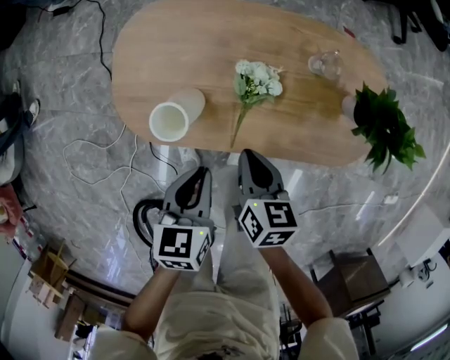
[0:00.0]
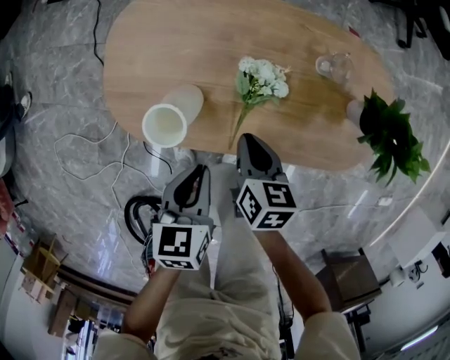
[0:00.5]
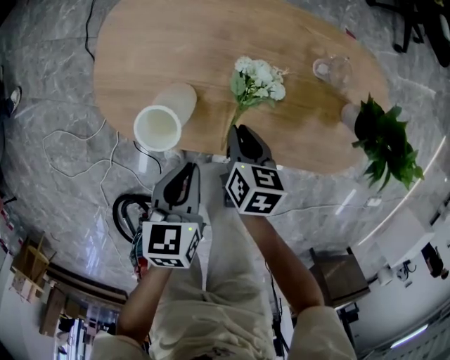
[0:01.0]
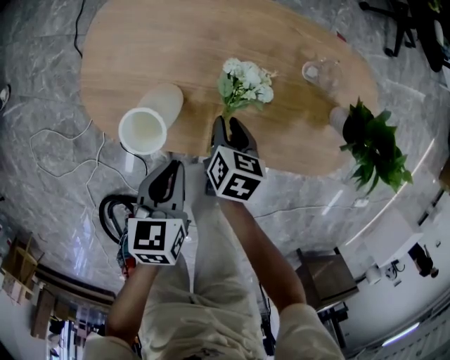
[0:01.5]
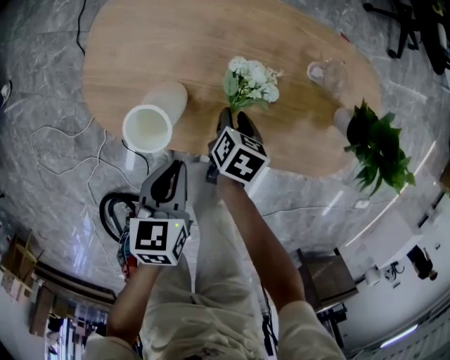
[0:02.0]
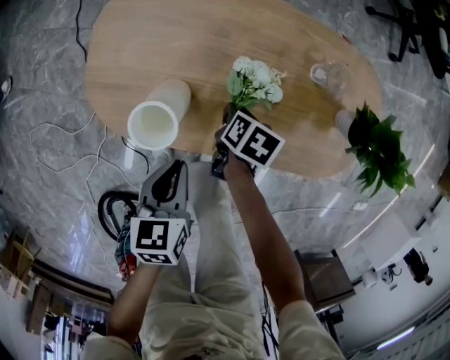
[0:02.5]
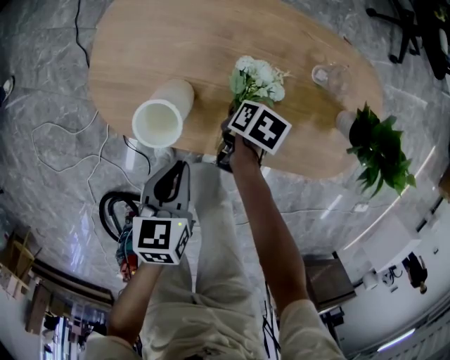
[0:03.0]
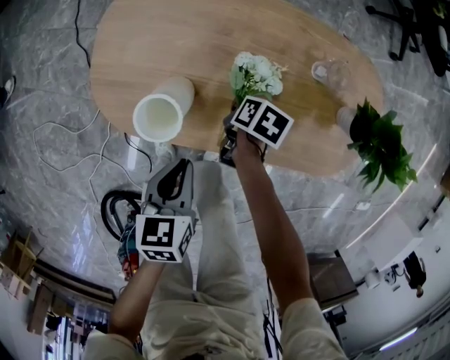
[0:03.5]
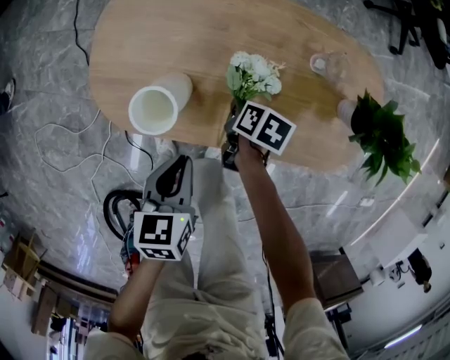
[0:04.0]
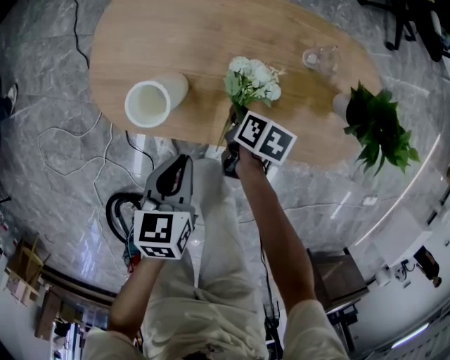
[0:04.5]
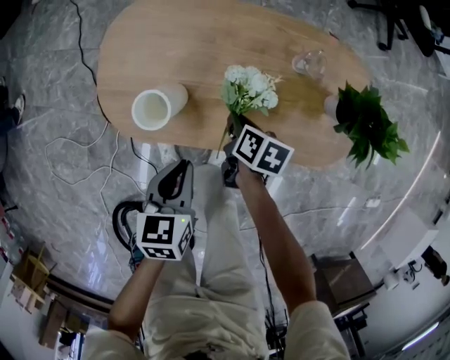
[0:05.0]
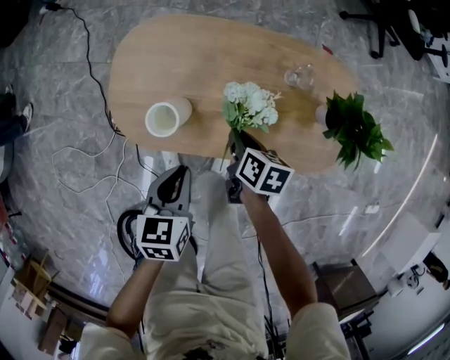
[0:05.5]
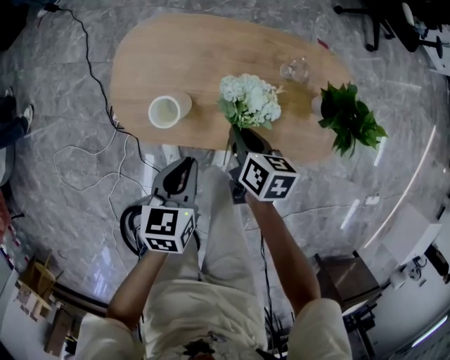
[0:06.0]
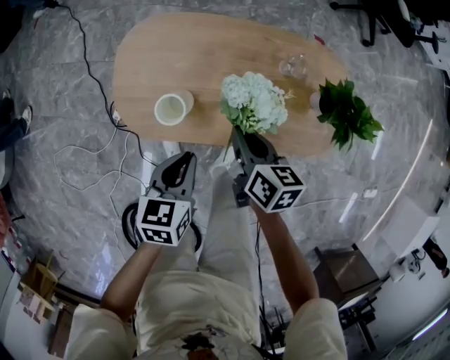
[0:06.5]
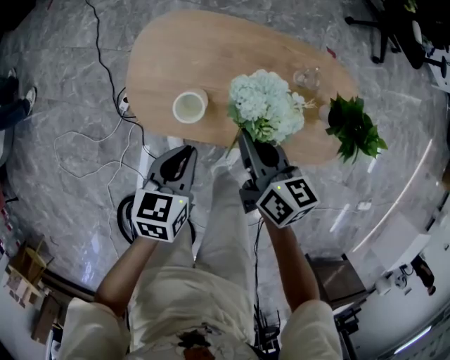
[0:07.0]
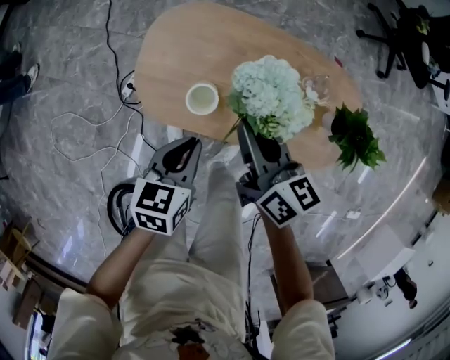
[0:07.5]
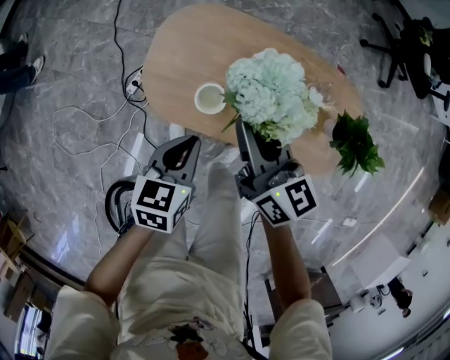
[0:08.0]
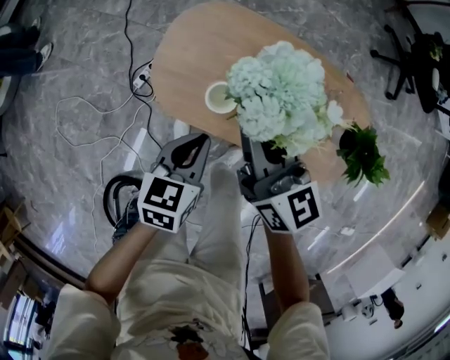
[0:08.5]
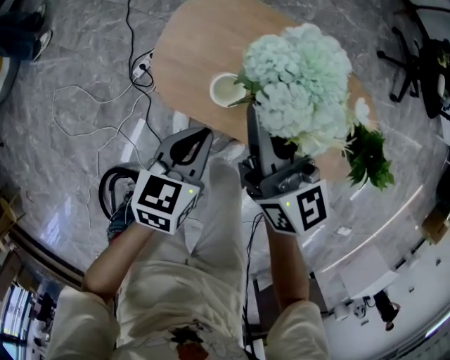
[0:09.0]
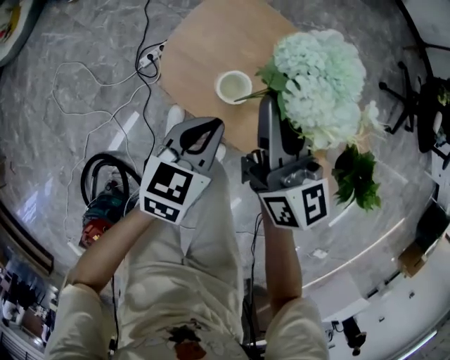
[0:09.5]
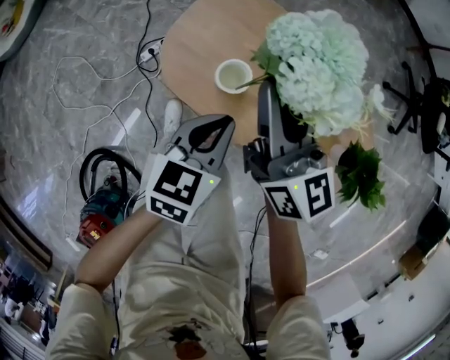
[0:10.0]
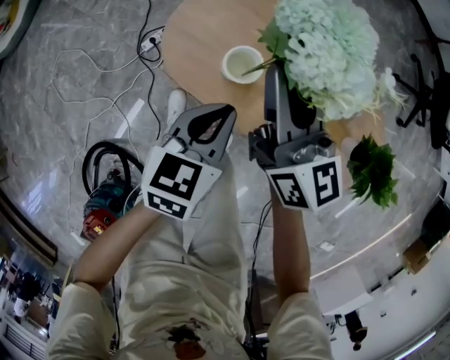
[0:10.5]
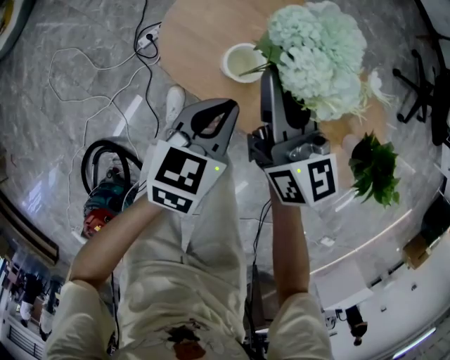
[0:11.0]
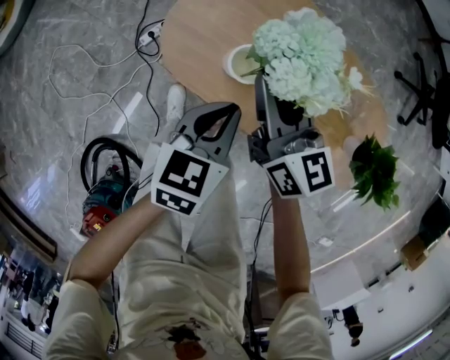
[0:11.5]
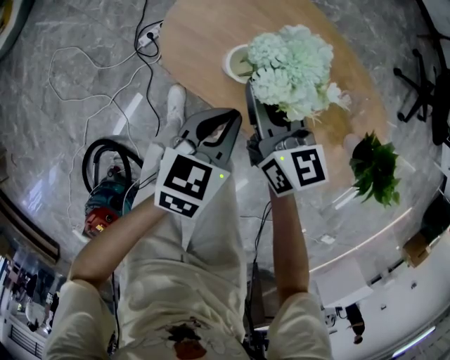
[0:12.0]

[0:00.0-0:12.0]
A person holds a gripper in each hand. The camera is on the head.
0:00.0 to 0:02.0: The right gripper moves downward, approximately 15 cm, turns by about 20 degrees, and opens up. The left gripper moves downward, about 10 cm.
0:02.0 to 0:04.0: The right gripper closes up.
0:04.0 to 0:06.0: The right gripper goes about 20 cm upward, and swivels about 20 degrees; the left gripper goes some 10 cm upward.
0:06.0 to 0:08.0: The left gripper goes some 10 cm to the left; the right gripper moves upward and to the left, some 20 cm, and angles its fingers upward, by approximately 30 degrees.
0:08.0 to 0:10.0: There are only small adjustments of the grippers.
0:10.0 to 0:12.0: The right gripper heads downward, covering some 15 cm. Meanwhile the left gripper travels downward by roughly 5 cm.

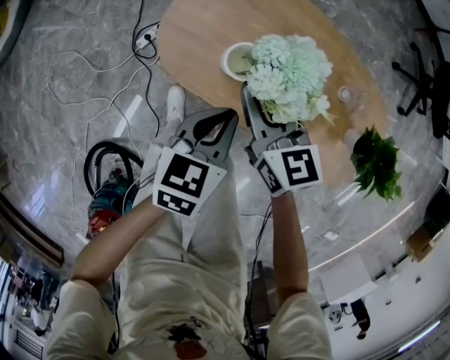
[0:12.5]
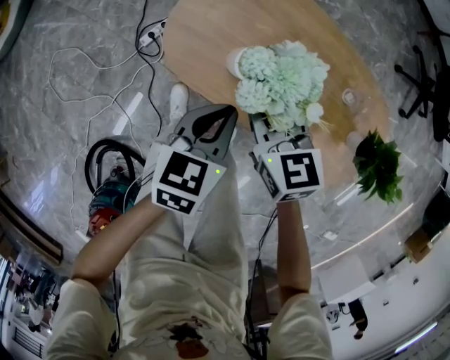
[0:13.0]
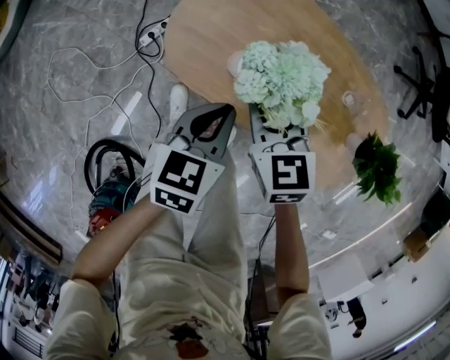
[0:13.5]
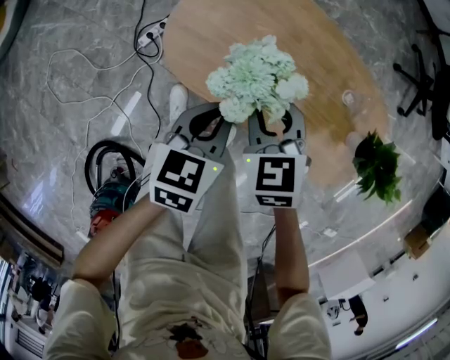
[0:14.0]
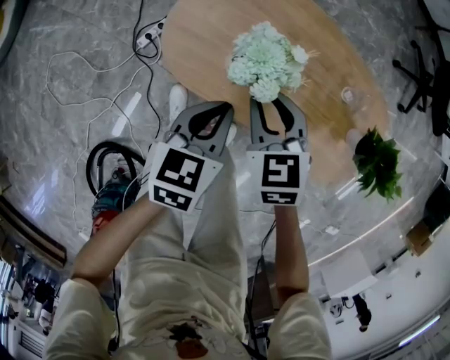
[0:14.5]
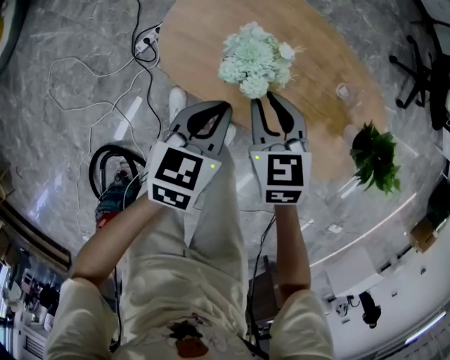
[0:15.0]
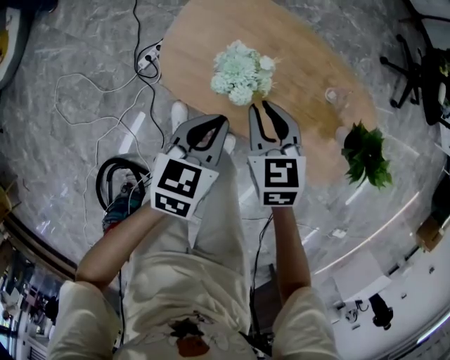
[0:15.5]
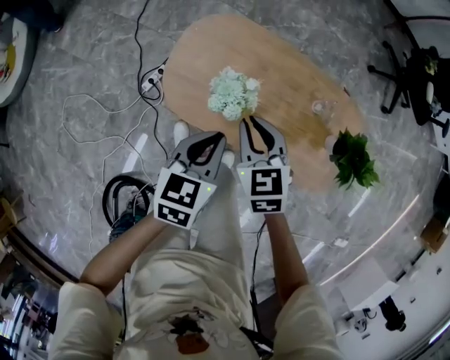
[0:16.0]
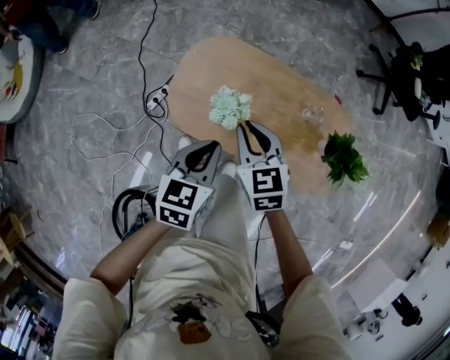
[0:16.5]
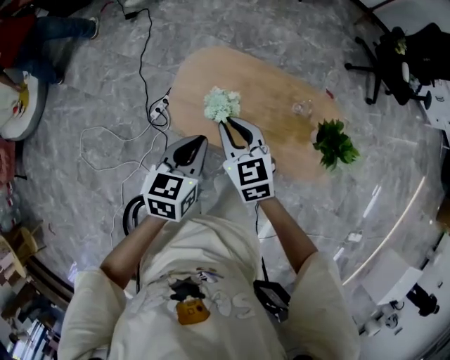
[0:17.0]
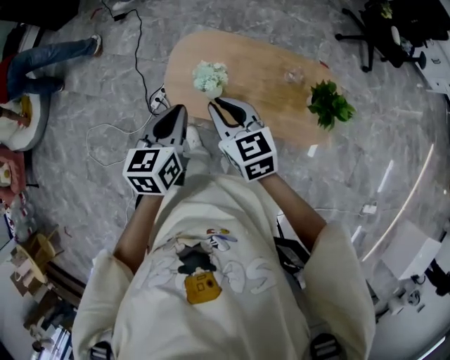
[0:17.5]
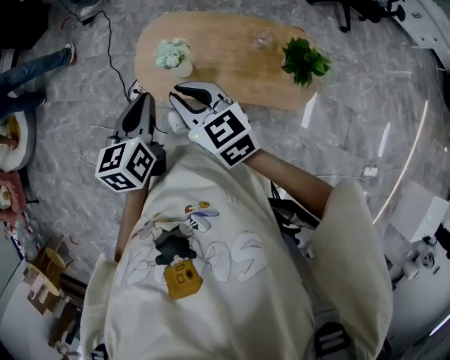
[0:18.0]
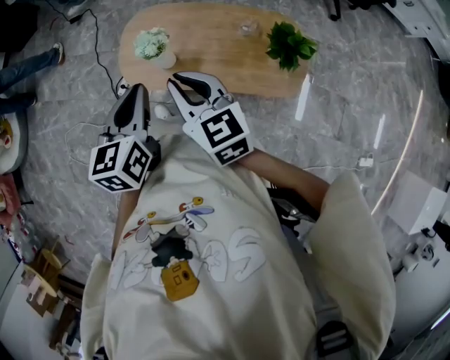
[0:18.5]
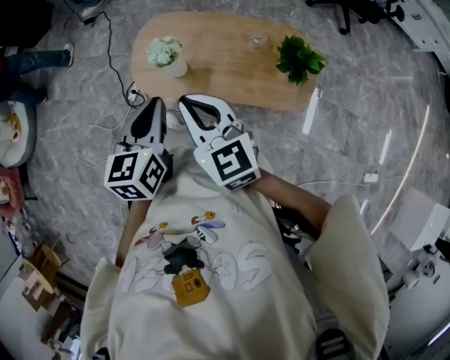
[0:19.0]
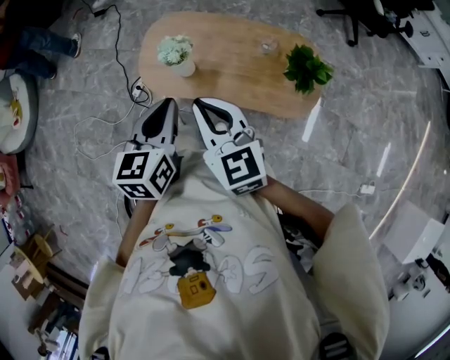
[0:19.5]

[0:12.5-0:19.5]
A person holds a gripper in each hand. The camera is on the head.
0:12.5 to 0:14.5: The right gripper swivels roughly 30 degrees.
0:14.5 to 0:16.0: Both grippers travel together upward, some 10 cm.
0:16.0 to 0:17.5: Both grippers move upward, about 20 cm.
0:17.5 to 0:19.5: Both grippers travel together backward and to the right, approximately 15 cm.

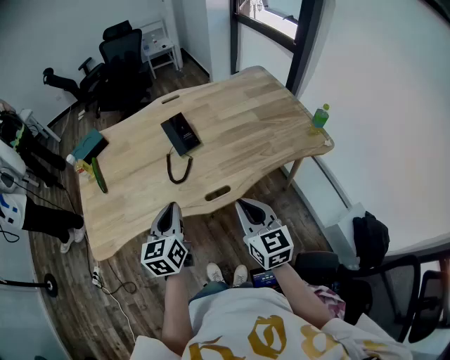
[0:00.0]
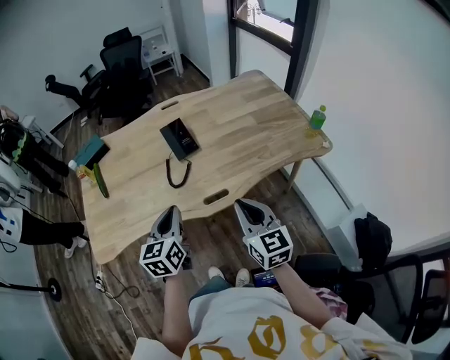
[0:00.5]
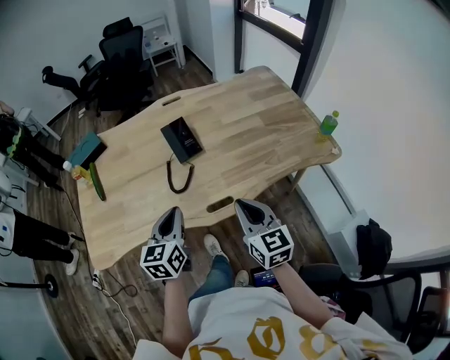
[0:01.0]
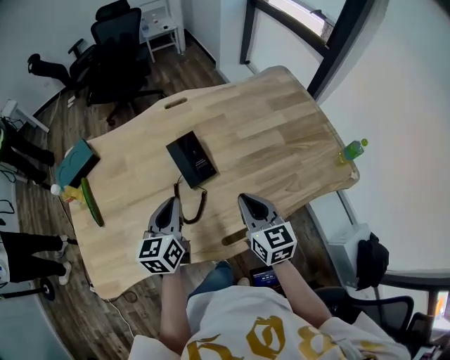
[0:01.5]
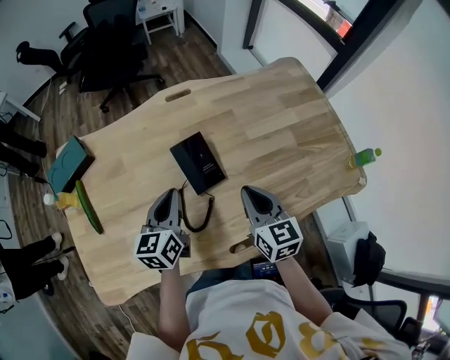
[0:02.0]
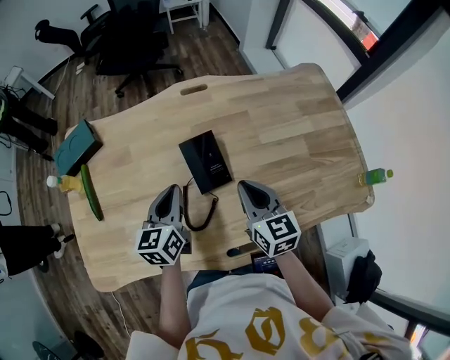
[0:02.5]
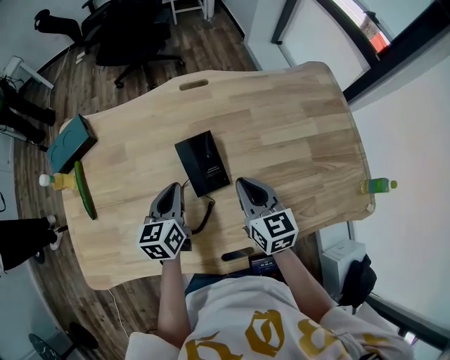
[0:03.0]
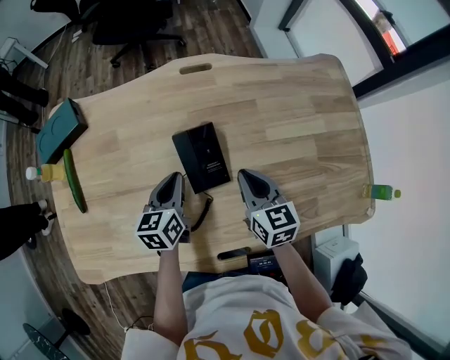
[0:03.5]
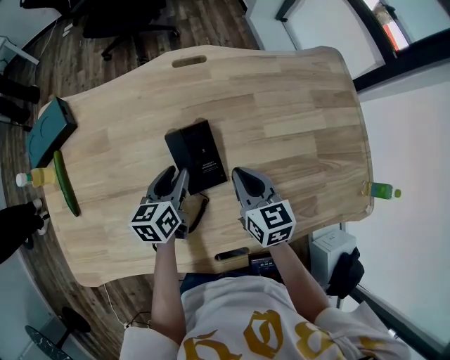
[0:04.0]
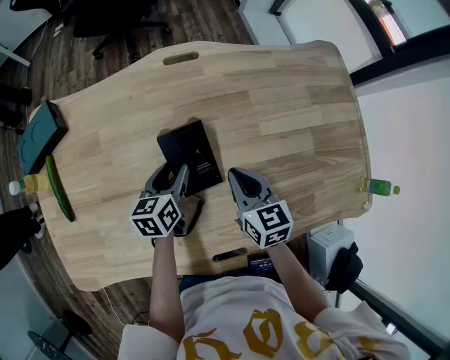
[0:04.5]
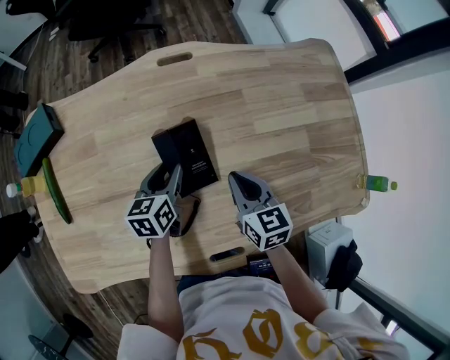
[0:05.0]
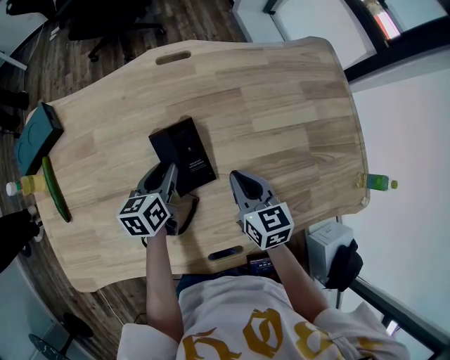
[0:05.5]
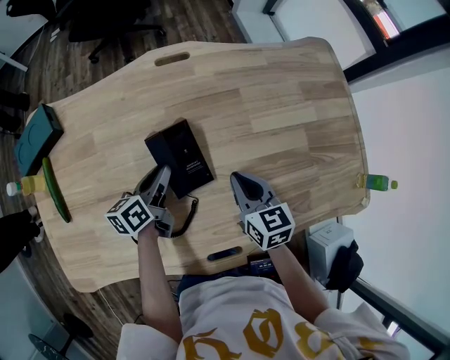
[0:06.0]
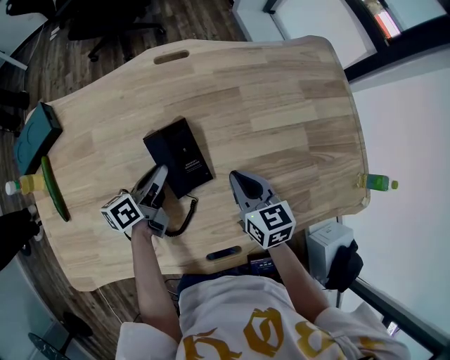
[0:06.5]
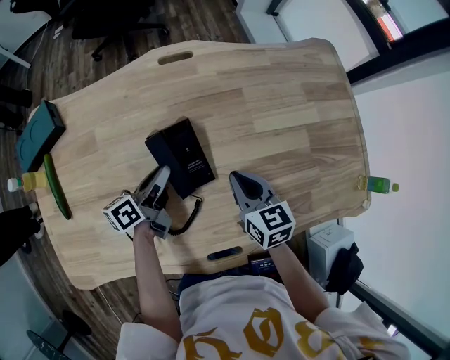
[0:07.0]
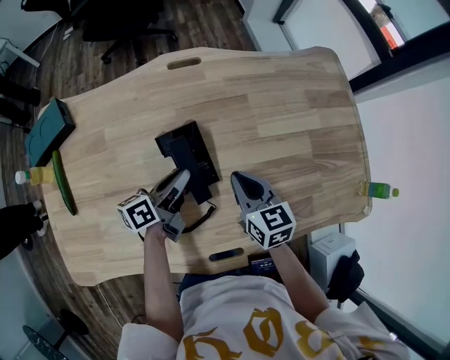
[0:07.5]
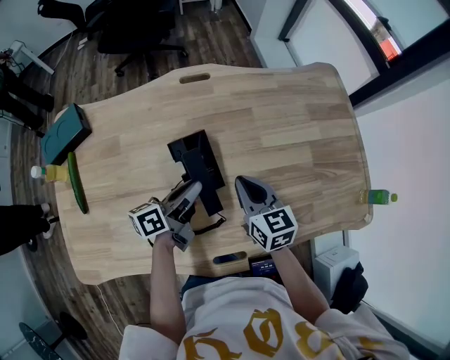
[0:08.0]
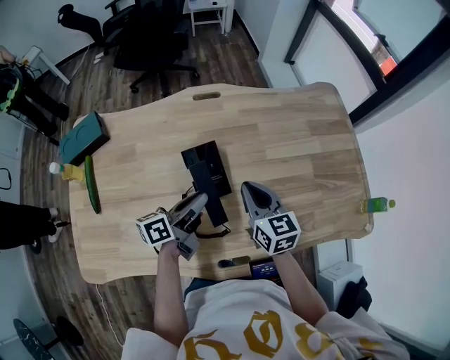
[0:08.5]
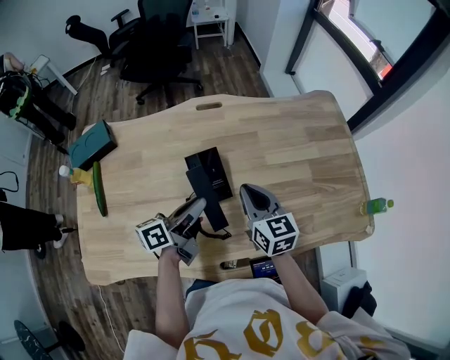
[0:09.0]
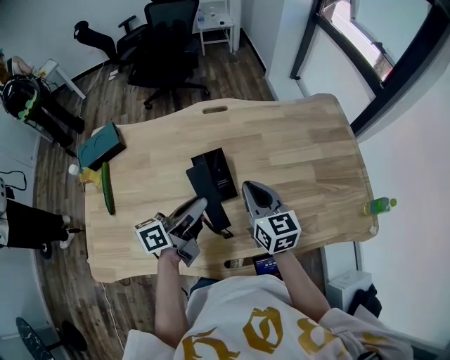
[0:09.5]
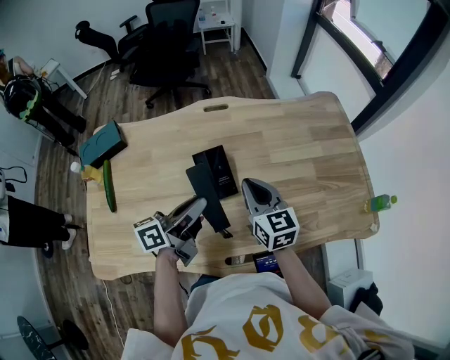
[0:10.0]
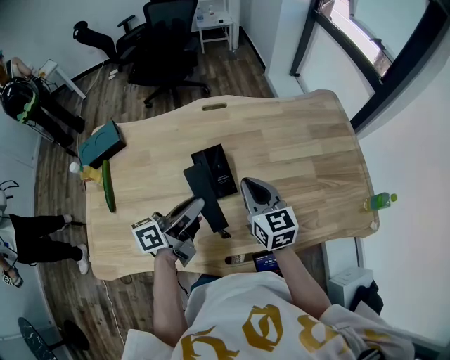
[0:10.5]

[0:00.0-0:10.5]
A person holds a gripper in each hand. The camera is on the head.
0:00.0 to 0:02.0: Both grippers move forward, roughly 30 cm.
0:02.0 to 0:04.0: The left gripper heads downward and forward, covering about 15 cm, and opens its fingers. The right gripper heads forward and downward, covering roughly 15 cm.
0:04.0 to 0:06.5: The left gripper swivels roughly 30 degrees.
0:06.5 to 0:08.5: The right gripper shifts some 10 cm upward. Meanwhile the left gripper moves upward, backward and to the right, some 10 cm.
0:08.5 to 0:10.5: The left gripper is displaced upward by about 10 cm.
